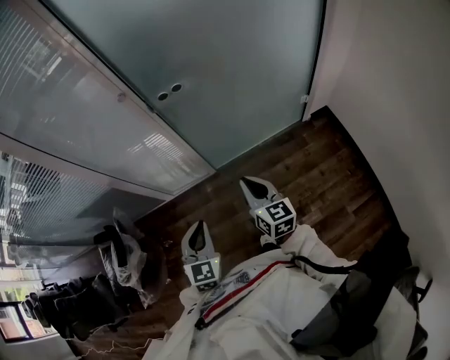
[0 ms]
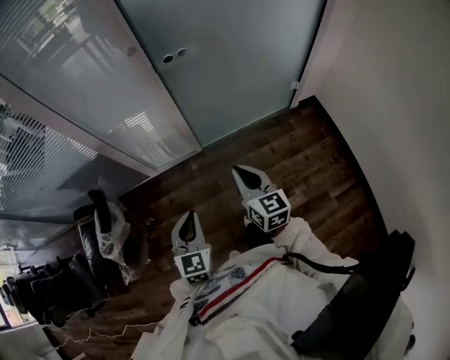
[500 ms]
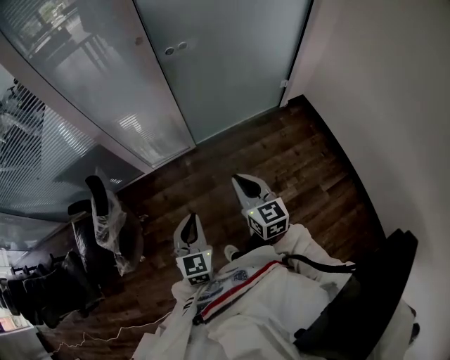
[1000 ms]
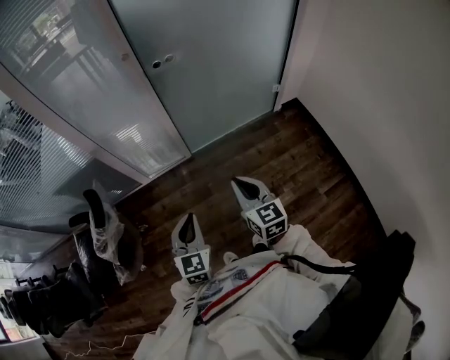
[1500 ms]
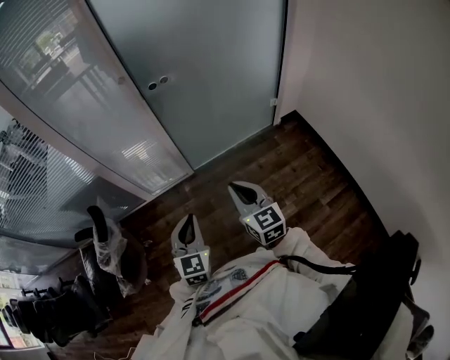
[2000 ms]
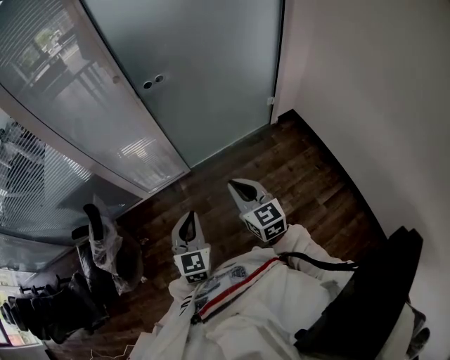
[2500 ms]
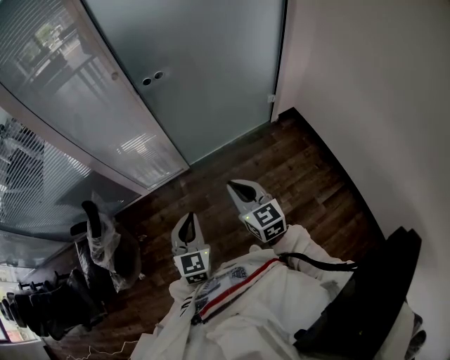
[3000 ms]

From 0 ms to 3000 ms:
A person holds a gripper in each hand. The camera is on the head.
From 0 ms to 1500 ms: Both grippers travel together backward, about 15 cm.
From 1500 ms to 3000 ms: The right gripper ends up roughly 5 cm from where it was. Meanwhile the left gripper travels to the right by about 5 cm.

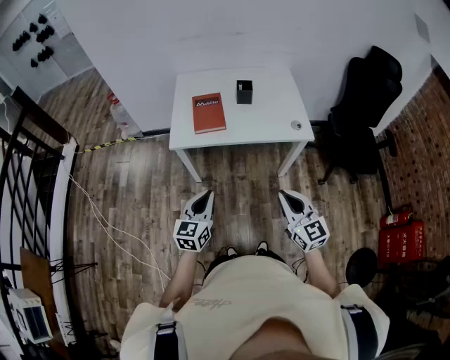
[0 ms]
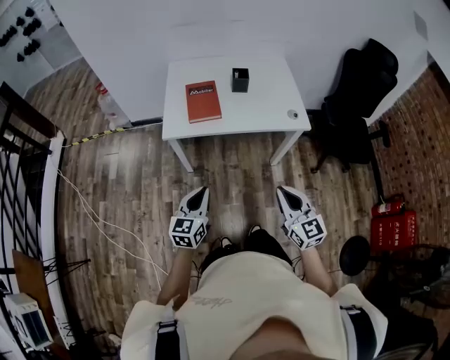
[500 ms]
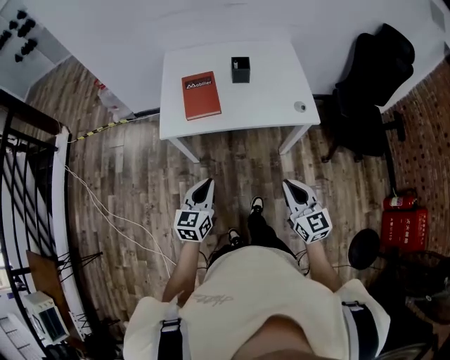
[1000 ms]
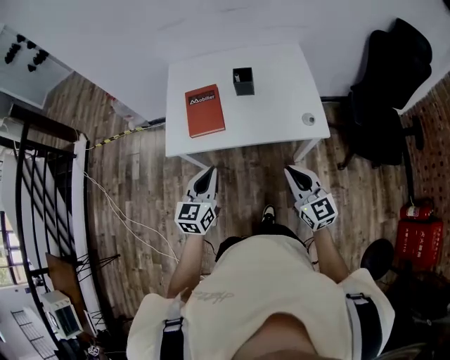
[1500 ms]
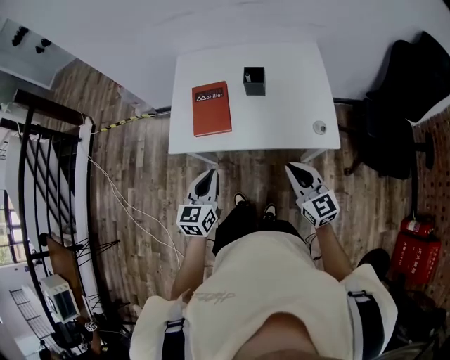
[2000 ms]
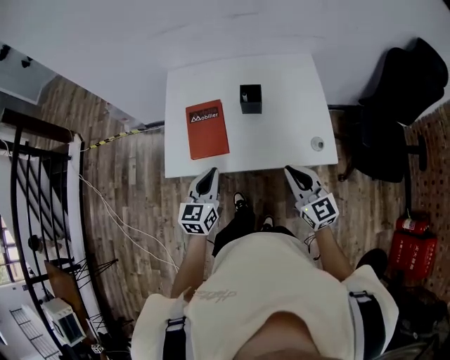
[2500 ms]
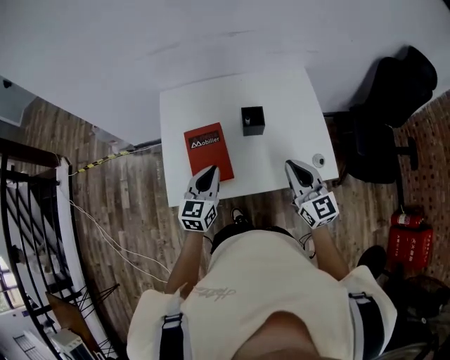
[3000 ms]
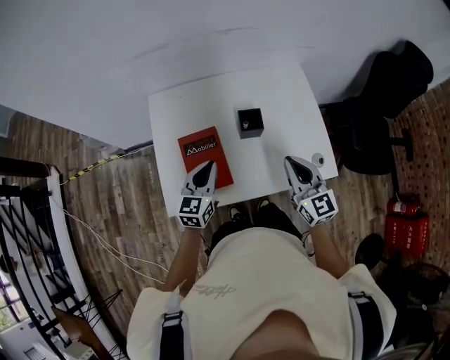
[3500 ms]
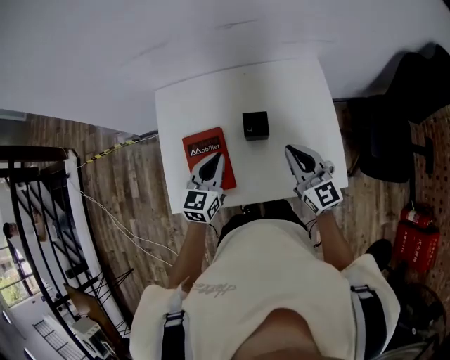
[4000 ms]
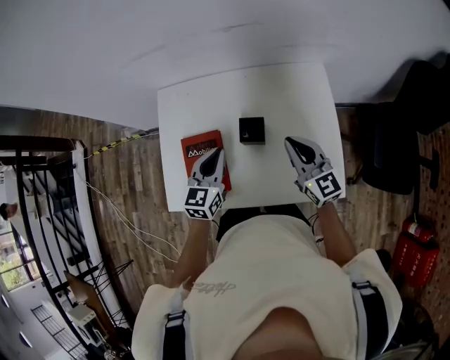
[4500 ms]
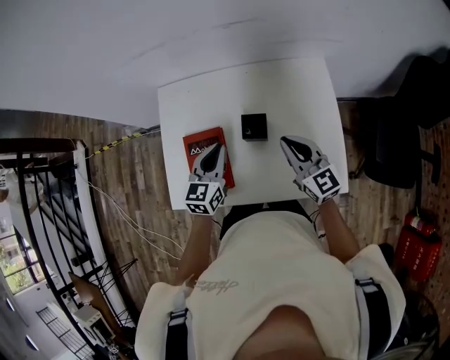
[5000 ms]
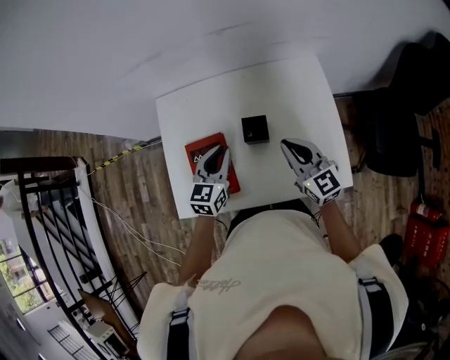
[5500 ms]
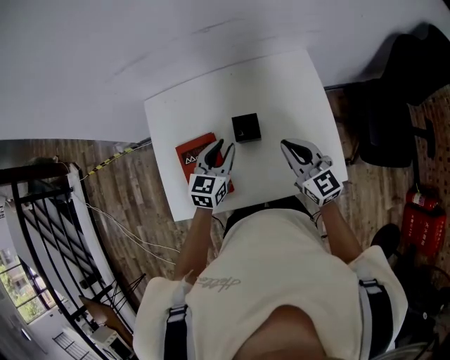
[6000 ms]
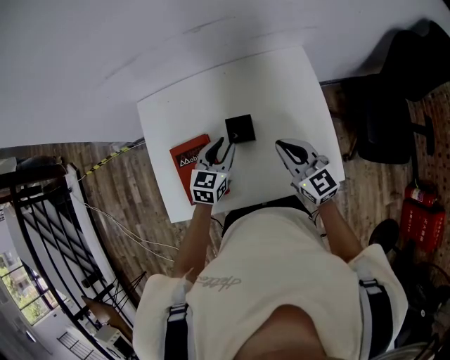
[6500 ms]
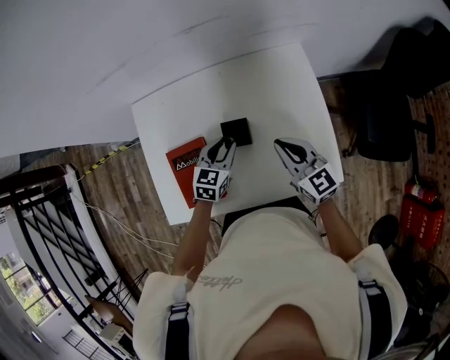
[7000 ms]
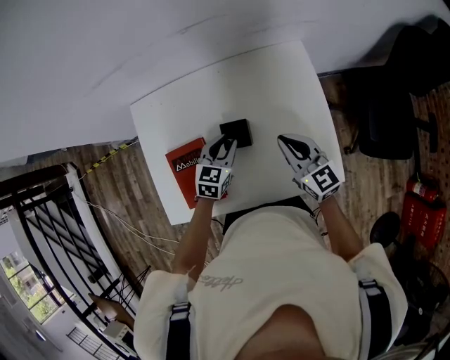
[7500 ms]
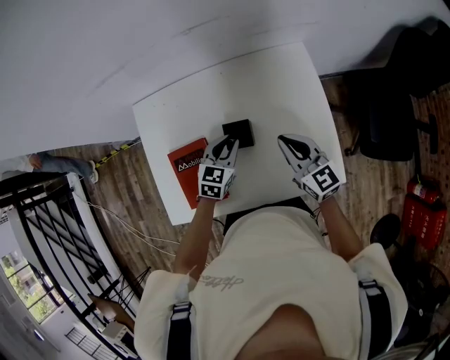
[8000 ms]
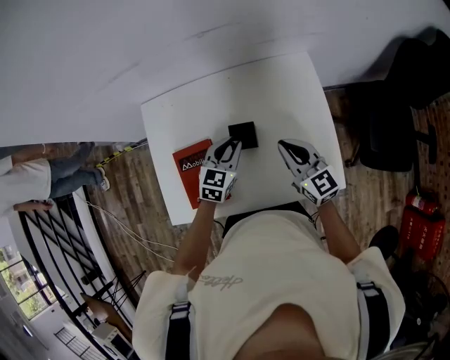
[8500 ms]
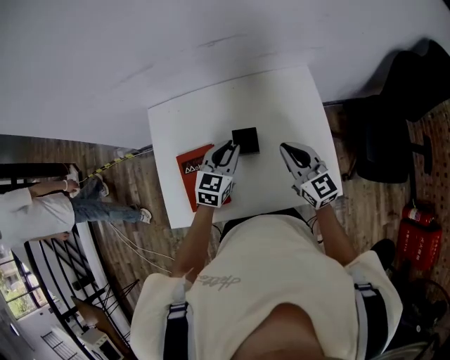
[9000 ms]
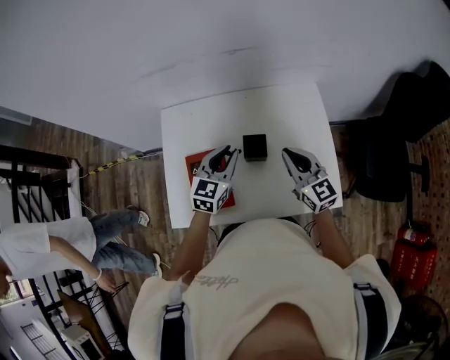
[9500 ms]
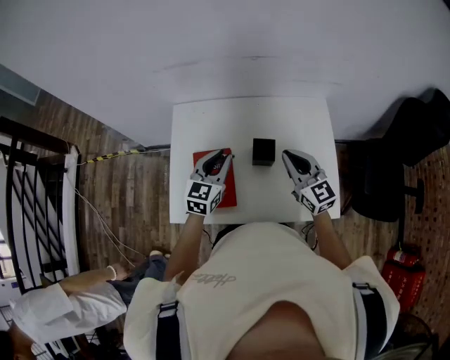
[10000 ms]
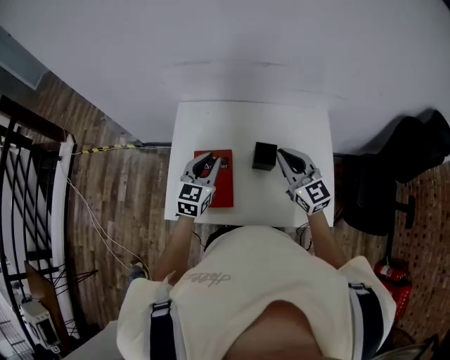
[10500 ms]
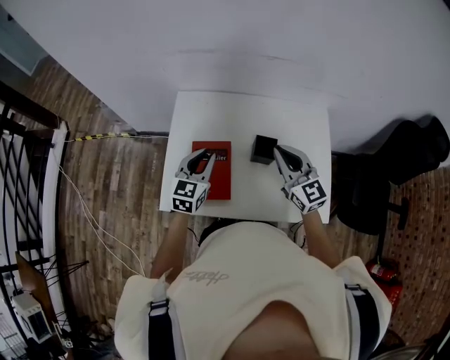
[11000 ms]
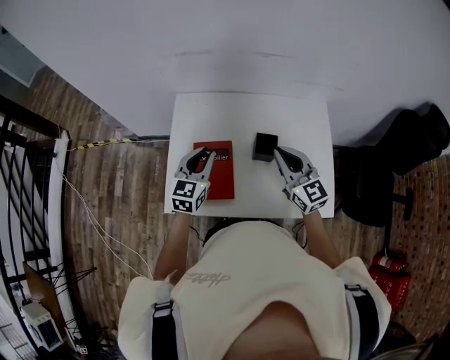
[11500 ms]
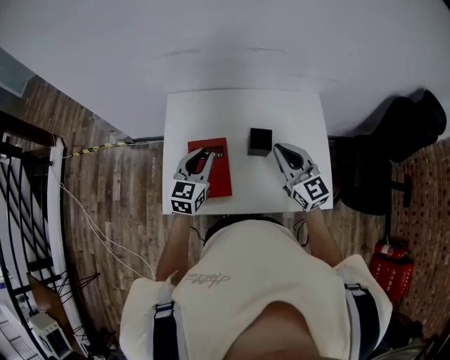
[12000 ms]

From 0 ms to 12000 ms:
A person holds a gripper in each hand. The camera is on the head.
From 0 ms to 2000 ms: The two grippers go about 20 cm forward.
From 2000 ms to 4000 ms: Both grippers move forward, approximately 30 cm.
From 4000 ms to 6000 ms: The left gripper goes about 5 cm to the right, and opens.
From 6000 ms to 8000 ms: The left gripper is displaced downward by roughly 5 cm, while the right gripper changes place by about 5 cm.
From 8000 ms to 10000 ms: The left gripper goes about 20 cm upward and to the left, and turns by roughly 20 degrees. The right gripper is displaced upward and to the left by roughly 10 cm.
From 10000 ms to 12000 ms: The left gripper travels to the left by about 5 cm.

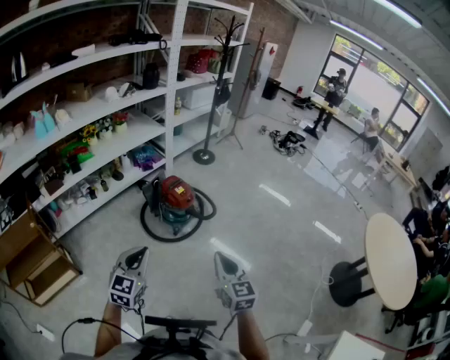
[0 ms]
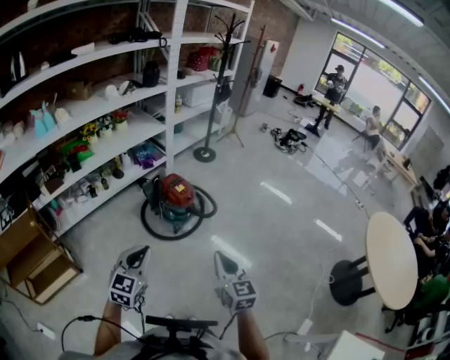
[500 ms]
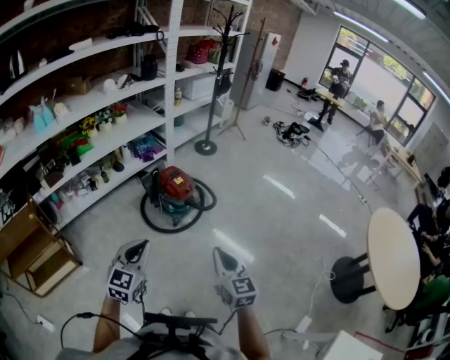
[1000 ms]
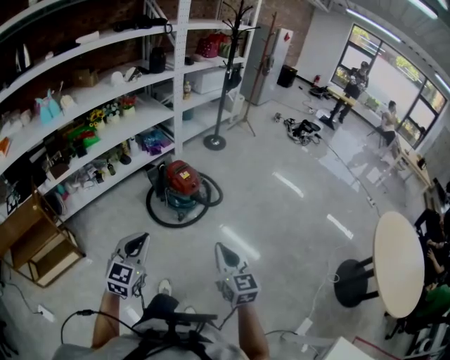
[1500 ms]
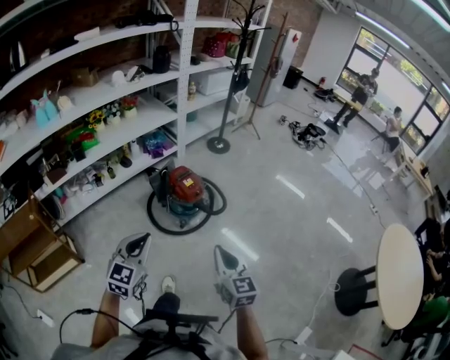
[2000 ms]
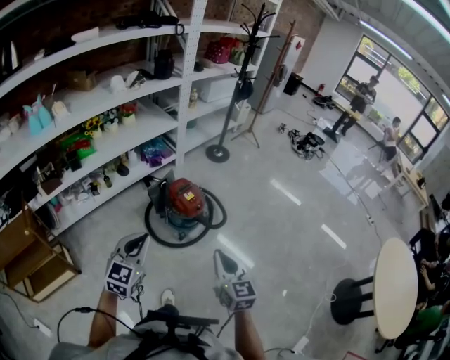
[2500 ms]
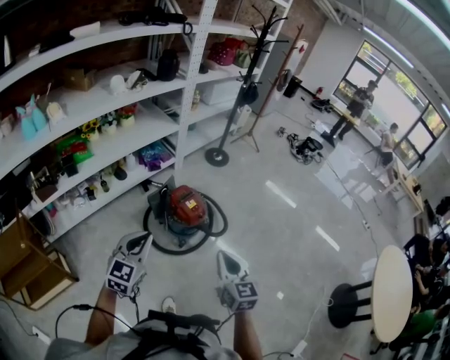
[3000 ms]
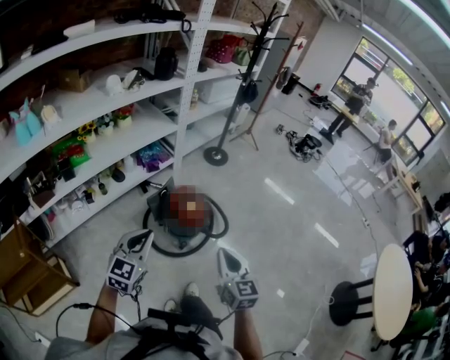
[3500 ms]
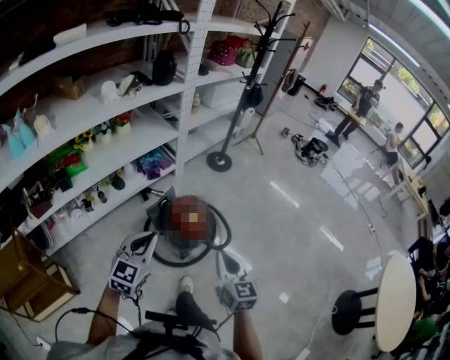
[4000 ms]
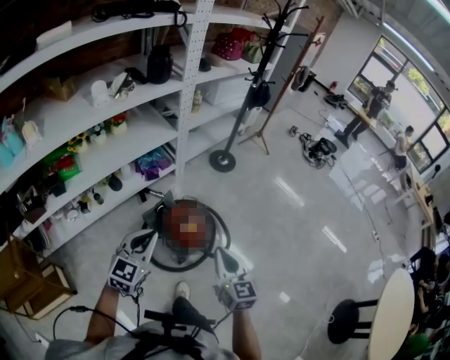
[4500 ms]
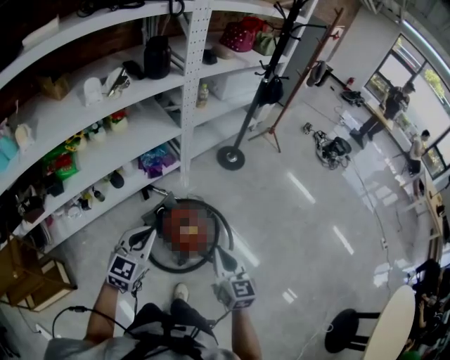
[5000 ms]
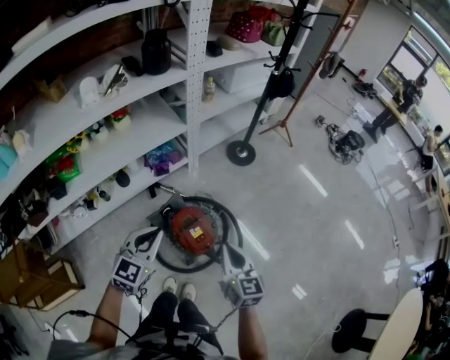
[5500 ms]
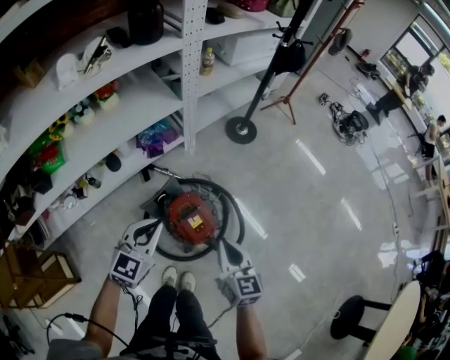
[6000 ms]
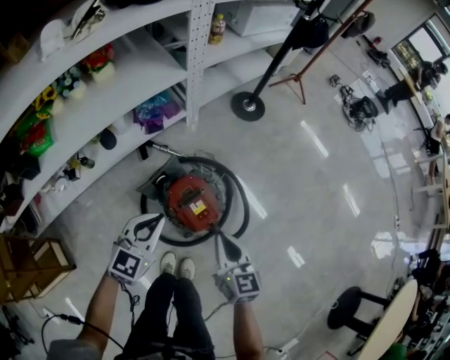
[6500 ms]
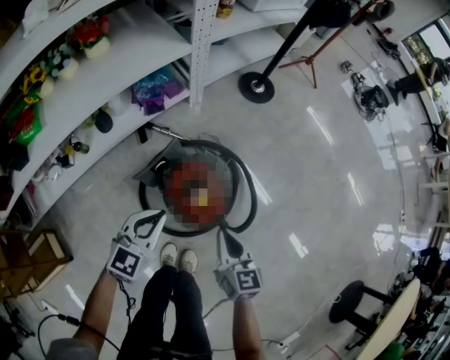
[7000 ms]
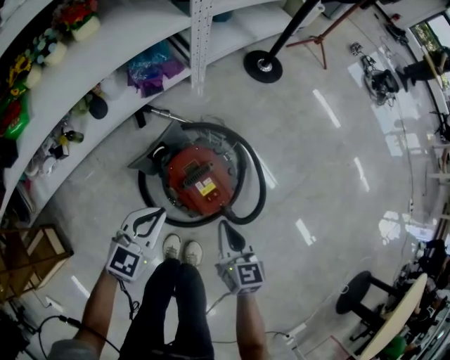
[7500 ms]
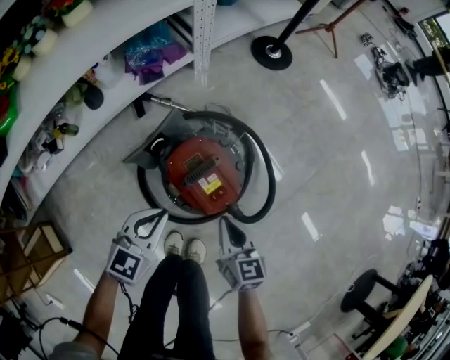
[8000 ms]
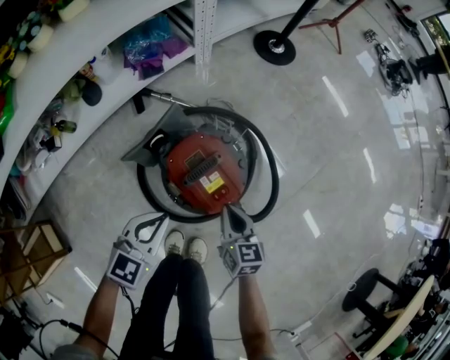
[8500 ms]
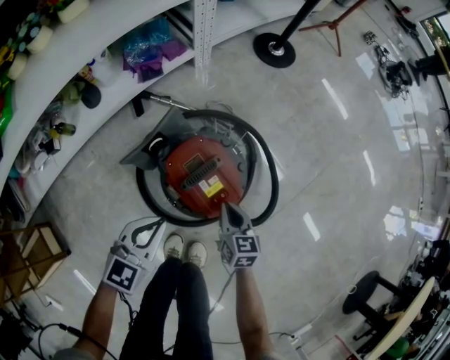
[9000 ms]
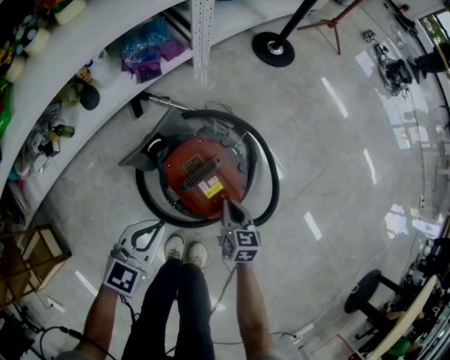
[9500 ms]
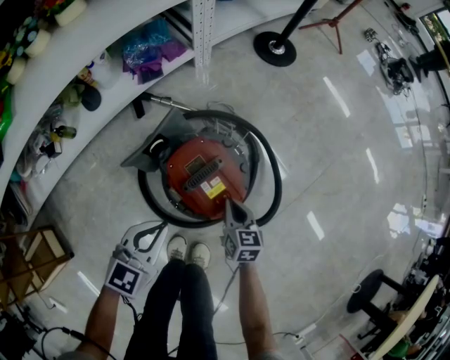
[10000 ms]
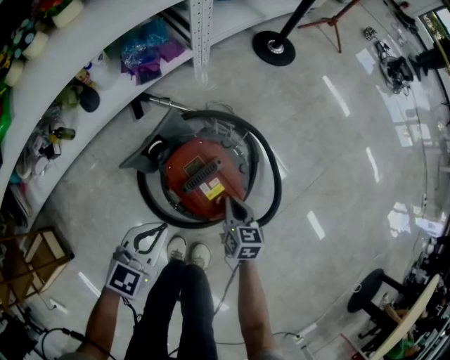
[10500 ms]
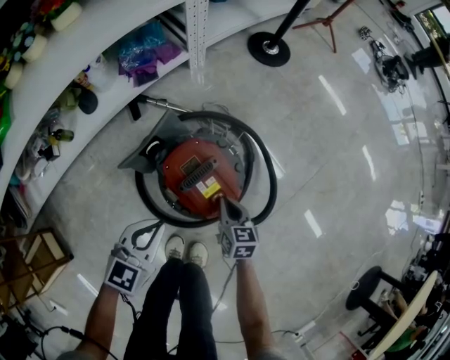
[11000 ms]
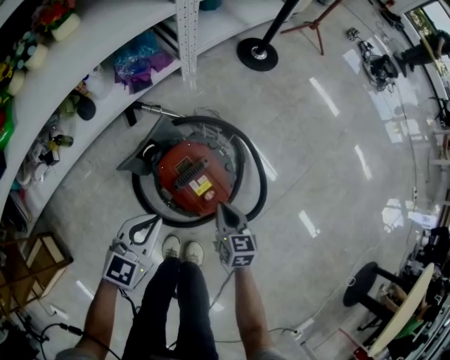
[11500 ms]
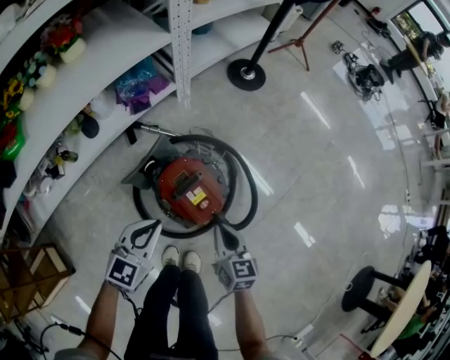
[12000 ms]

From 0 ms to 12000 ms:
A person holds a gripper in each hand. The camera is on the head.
From 0 ms to 2000 ms: The two grippers go some 10 cm forward.
From 2000 ms to 4000 ms: Both grippers travel together forward, approximately 30 cm.
From 4000 ms to 6000 ms: The grippers both shift forward and downward by roughly 30 cm.
From 6000 ms to 8000 ms: Both grippers travel together downward, some 30 cm.
From 8000 ms to 10000 ms: The right gripper heads downward and forward, covering approximately 15 cm.
From 10000 ms to 12000 ms: The right gripper heads upward, covering some 15 cm, while the left gripper shifts roughly 10 cm upward.
